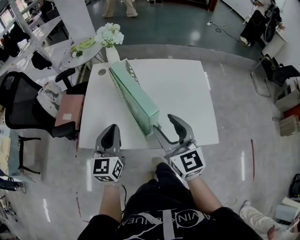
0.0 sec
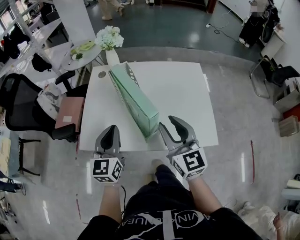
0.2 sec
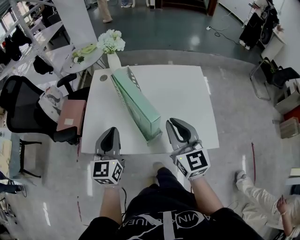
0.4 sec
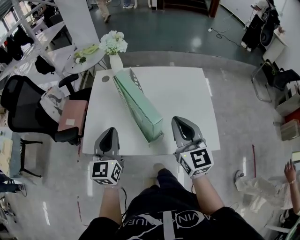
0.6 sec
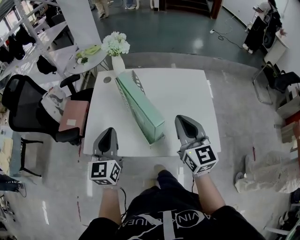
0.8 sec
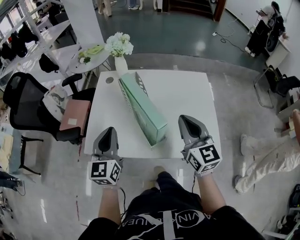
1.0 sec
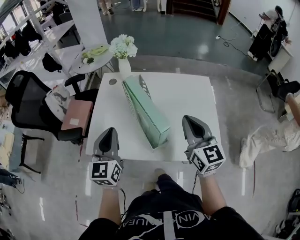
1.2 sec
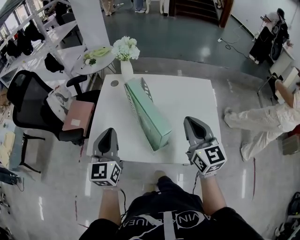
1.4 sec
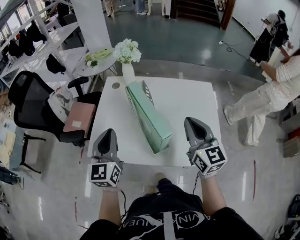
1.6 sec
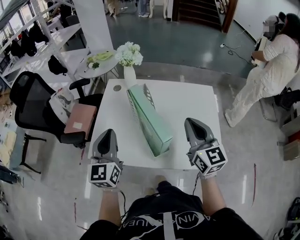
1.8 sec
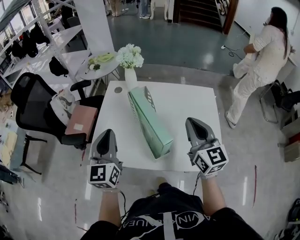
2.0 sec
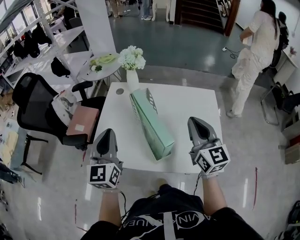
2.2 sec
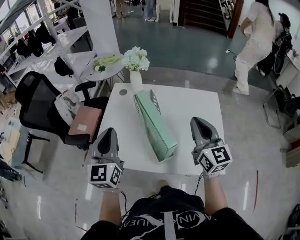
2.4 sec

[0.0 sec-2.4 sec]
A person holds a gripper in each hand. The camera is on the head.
0.0 sec to 1.2 sec: The left gripper ends up about 5 cm from where it was, while the right gripper travels to the right and forward by approximately 10 cm, and closes up.
1.2 sec to 2.4 sec: The left gripper shifts approximately 5 cm upward. The right gripper changes place by some 5 cm.

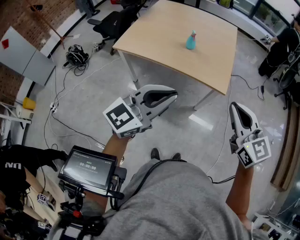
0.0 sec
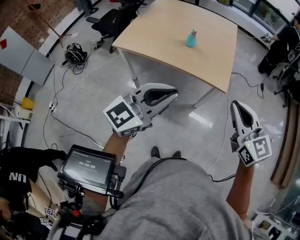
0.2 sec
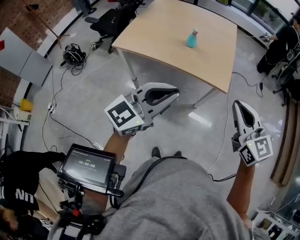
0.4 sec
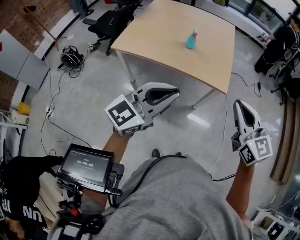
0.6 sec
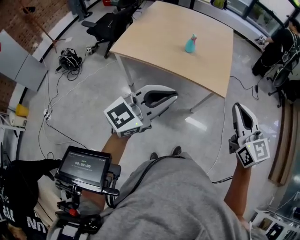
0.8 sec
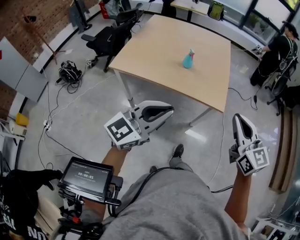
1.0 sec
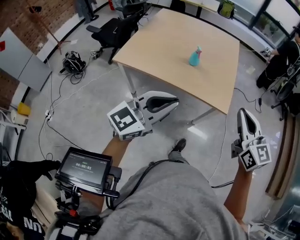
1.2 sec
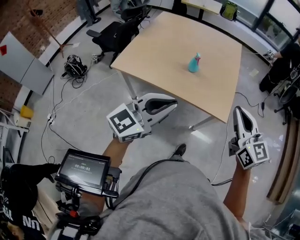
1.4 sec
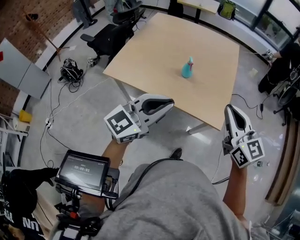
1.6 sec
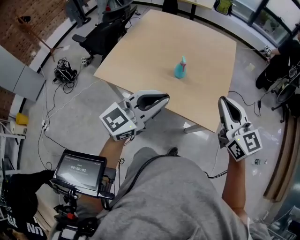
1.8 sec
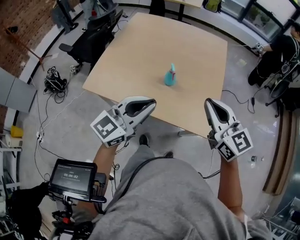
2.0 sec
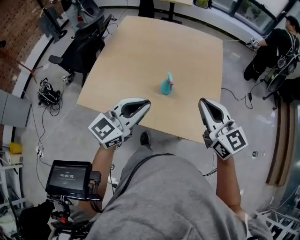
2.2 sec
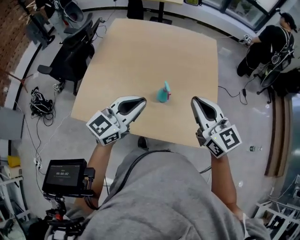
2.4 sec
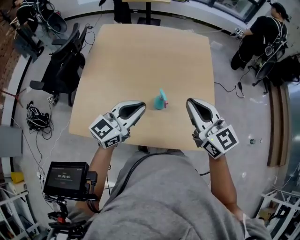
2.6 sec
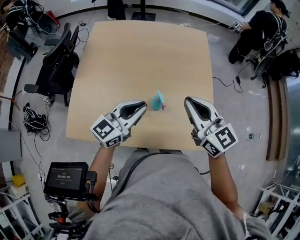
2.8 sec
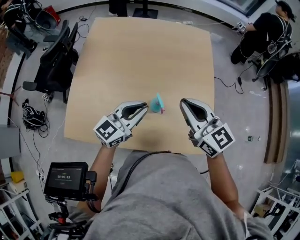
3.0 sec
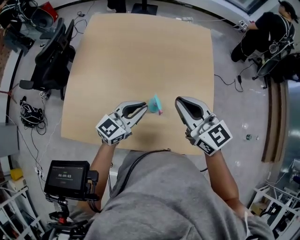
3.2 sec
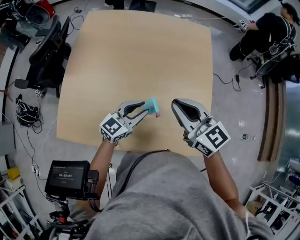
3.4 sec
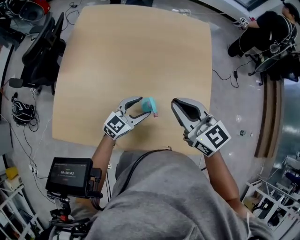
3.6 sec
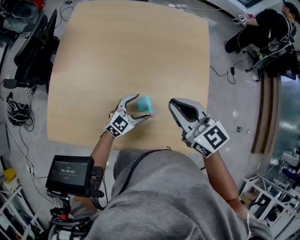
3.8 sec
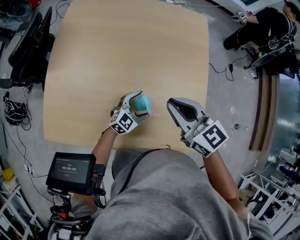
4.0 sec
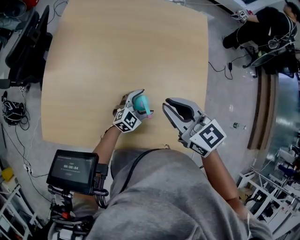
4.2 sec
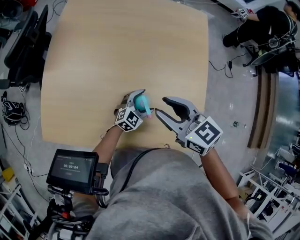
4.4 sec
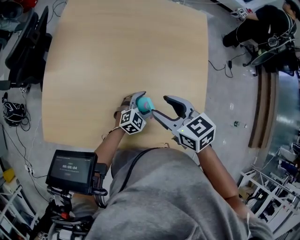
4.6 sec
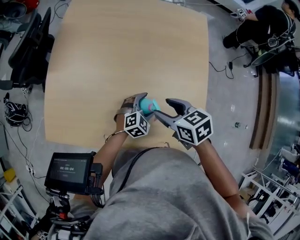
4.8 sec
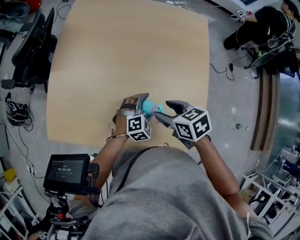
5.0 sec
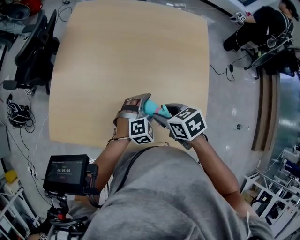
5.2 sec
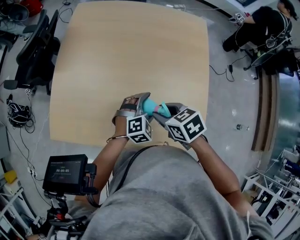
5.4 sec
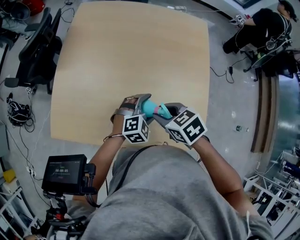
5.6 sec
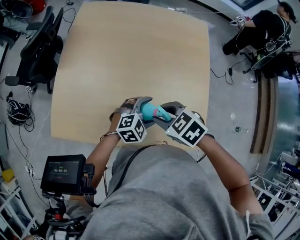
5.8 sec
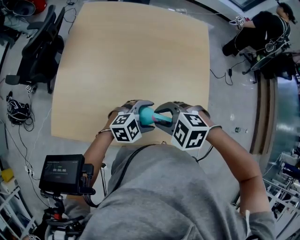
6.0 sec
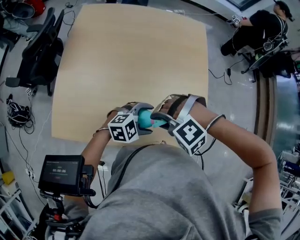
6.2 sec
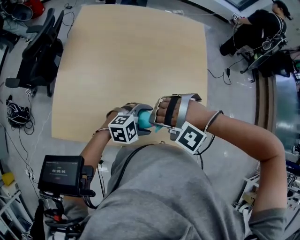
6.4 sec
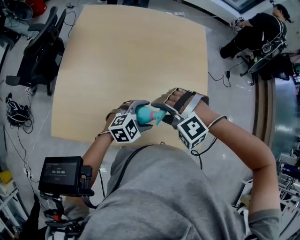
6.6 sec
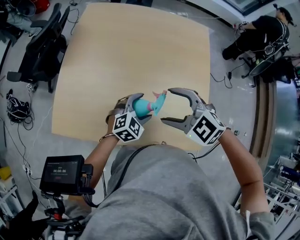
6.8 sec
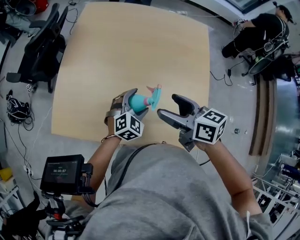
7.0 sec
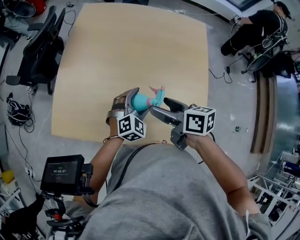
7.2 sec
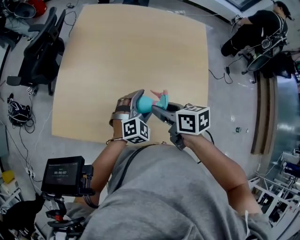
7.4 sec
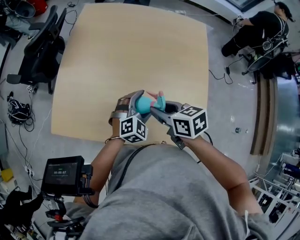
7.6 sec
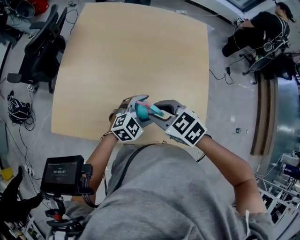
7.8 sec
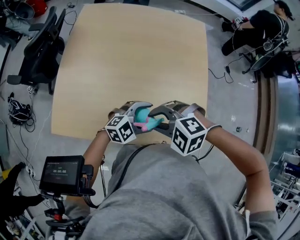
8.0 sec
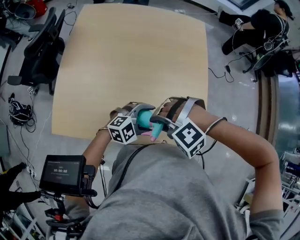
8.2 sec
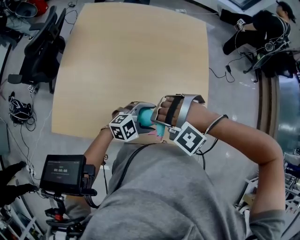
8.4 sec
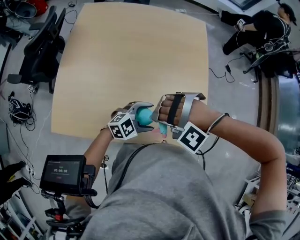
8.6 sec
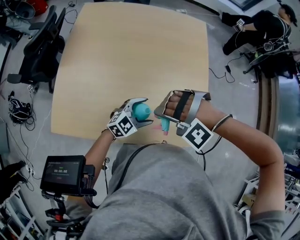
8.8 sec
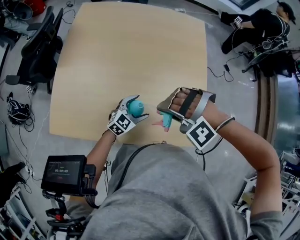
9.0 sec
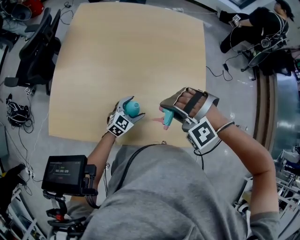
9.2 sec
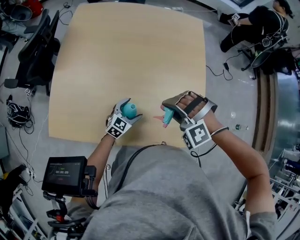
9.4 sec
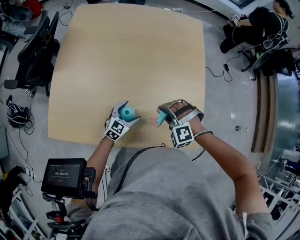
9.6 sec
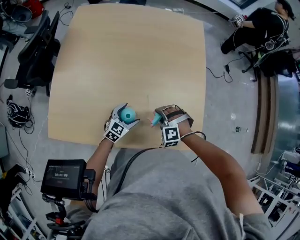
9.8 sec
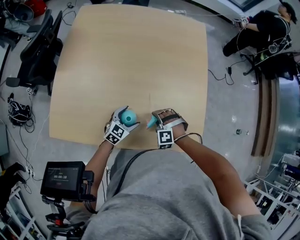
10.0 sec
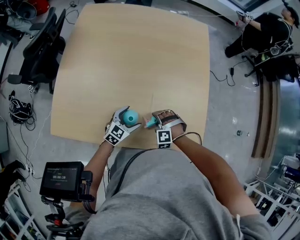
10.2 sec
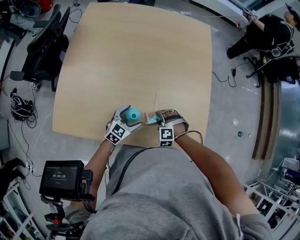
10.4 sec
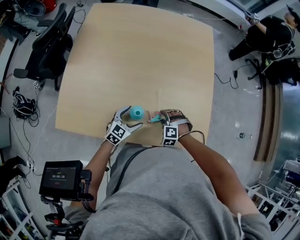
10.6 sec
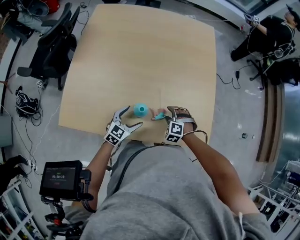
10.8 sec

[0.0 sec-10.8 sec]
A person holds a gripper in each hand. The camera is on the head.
0.0 sec to 1.6 sec: The grippers both shift forward by approximately 25 cm.
1.6 sec to 3.0 sec: The two grippers go about 35 cm forward.
3.0 sec to 4.6 sec: The left gripper heads downward and to the right, covering roughly 30 cm, tips its fingers downward by approximately 30 degrees, and opens its fingers, while the right gripper heads downward and forward, covering some 15 cm, swivels about 30 degrees, and opens.
4.6 sec to 6.2 sec: The right gripper shifts by roughly 15 cm, and rotates around the line of its fingers by approximately 90 degrees, counterclockwise from behind. Meanwhile the left gripper heads upward, covering approximately 15 cm, and turns by about 30 degrees.
6.2 sec to 7.8 sec: The left gripper turns by some 20 degrees. Meanwhile the right gripper rotates around the line of its fingers by about 70 degrees, clockwise from behind, and opens and closes again.
7.8 sec to 9.2 sec: The left gripper is displaced downward by approximately 10 cm; the right gripper moves about 5 cm, and rolls counterclockwise, seen from behind, by approximately 80 degrees.
9.2 sec to 10.8 sec: The left gripper shifts roughly 10 cm backward; the right gripper moves downward, about 25 cm, and rolls clockwise, seen from behind, by about 40 degrees.

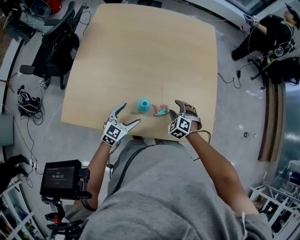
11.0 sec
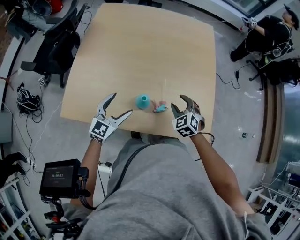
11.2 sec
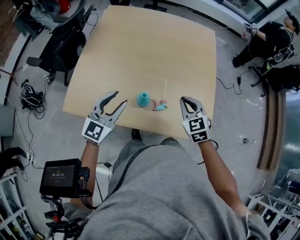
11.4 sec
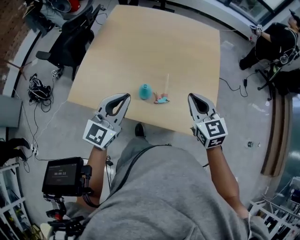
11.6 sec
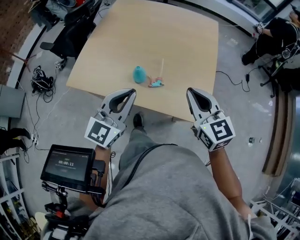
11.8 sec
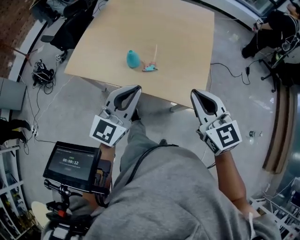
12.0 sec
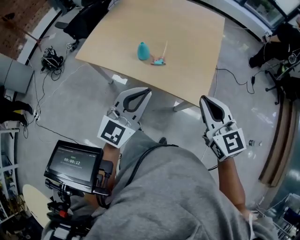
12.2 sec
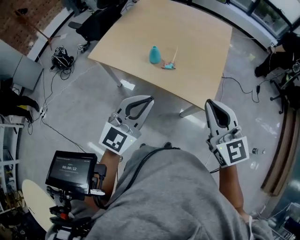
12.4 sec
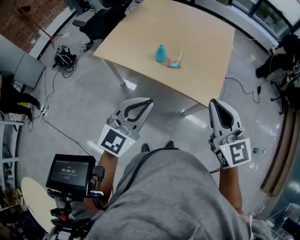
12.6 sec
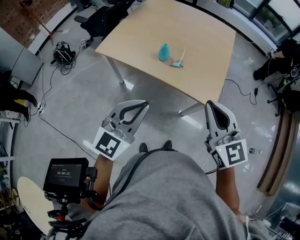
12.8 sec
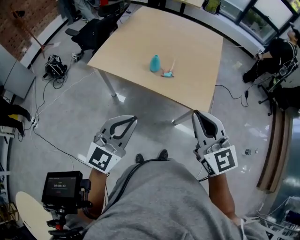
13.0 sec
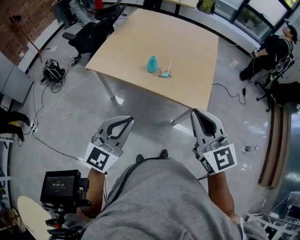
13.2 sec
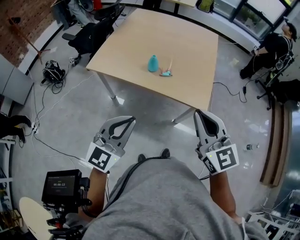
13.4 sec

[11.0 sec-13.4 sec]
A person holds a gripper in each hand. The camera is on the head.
11.0 sec to 12.2 sec: The left gripper shifts by approximately 40 cm, swivels about 30 degrees, and closes its fingers, while the right gripper shifts approximately 30 cm upward, tilts its fingers roughly 40 degrees upward, and closes.
12.2 sec to 13.4 sec: The left gripper goes about 20 cm backward and to the left; the right gripper travels backward, to the left and upward by some 20 cm.

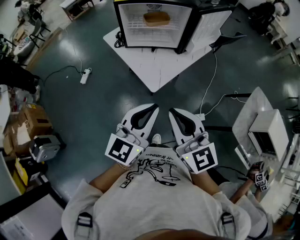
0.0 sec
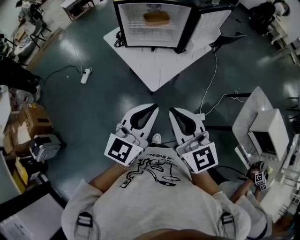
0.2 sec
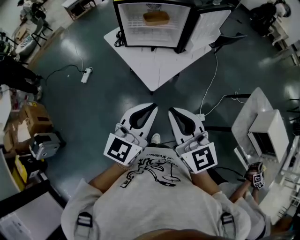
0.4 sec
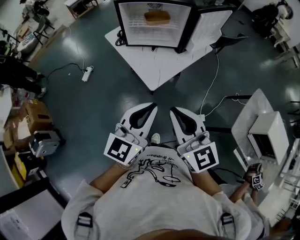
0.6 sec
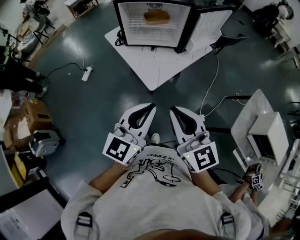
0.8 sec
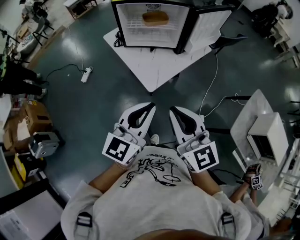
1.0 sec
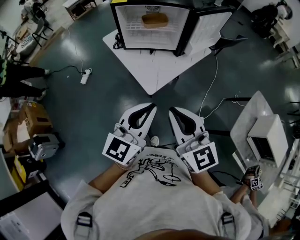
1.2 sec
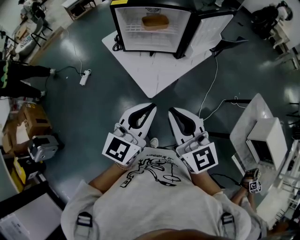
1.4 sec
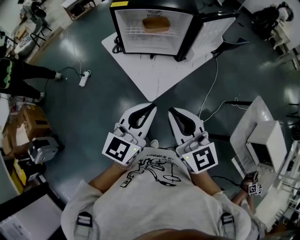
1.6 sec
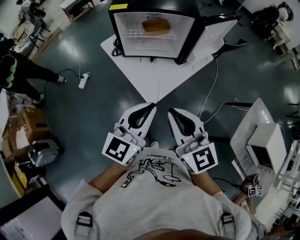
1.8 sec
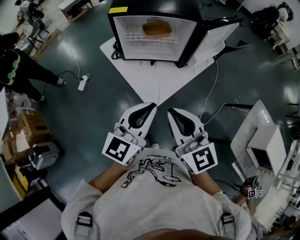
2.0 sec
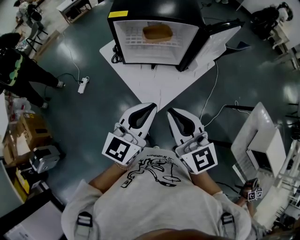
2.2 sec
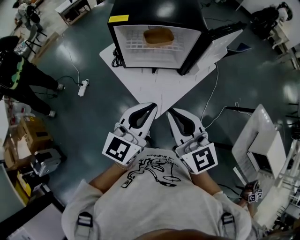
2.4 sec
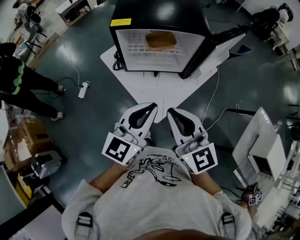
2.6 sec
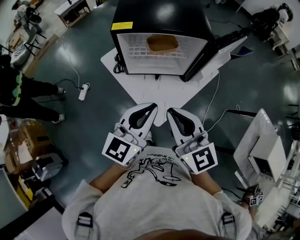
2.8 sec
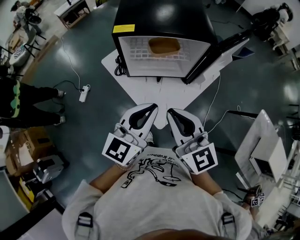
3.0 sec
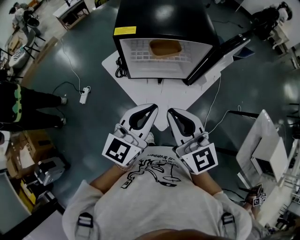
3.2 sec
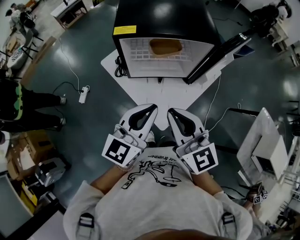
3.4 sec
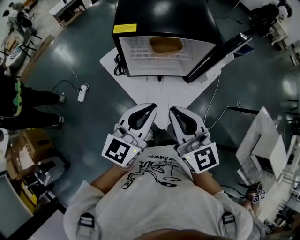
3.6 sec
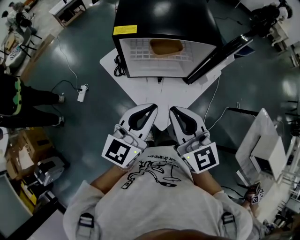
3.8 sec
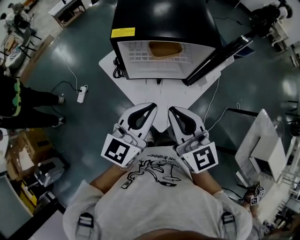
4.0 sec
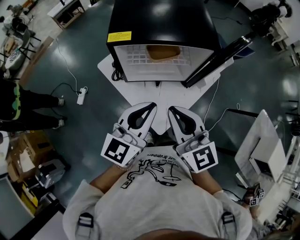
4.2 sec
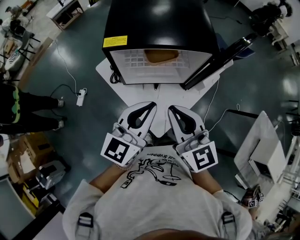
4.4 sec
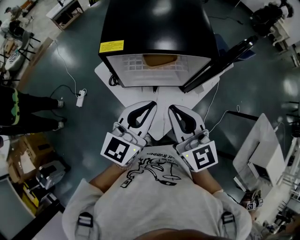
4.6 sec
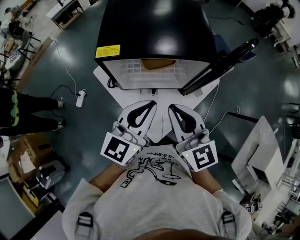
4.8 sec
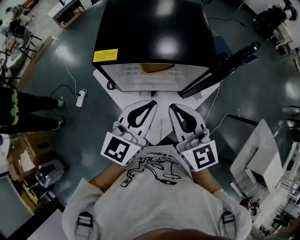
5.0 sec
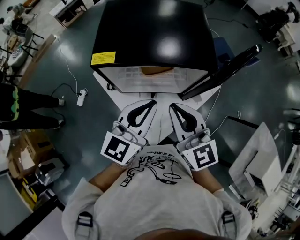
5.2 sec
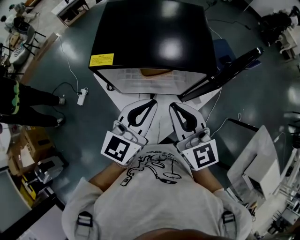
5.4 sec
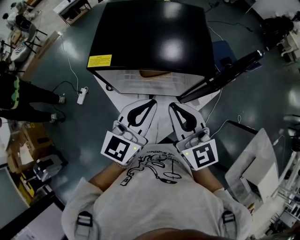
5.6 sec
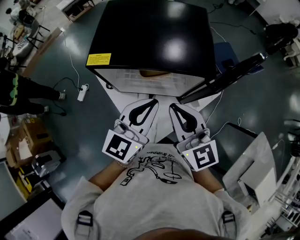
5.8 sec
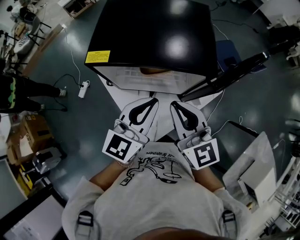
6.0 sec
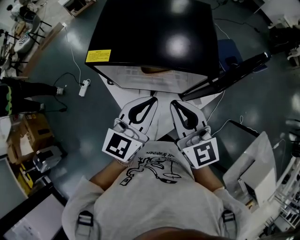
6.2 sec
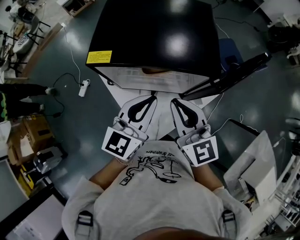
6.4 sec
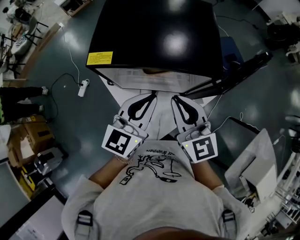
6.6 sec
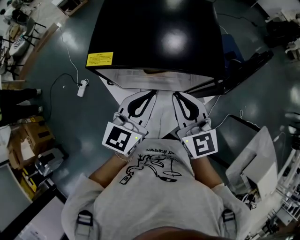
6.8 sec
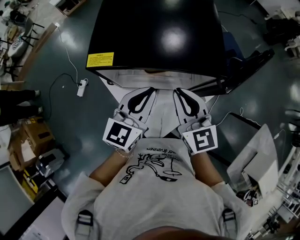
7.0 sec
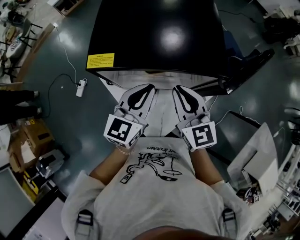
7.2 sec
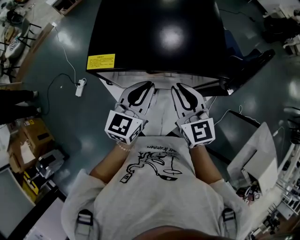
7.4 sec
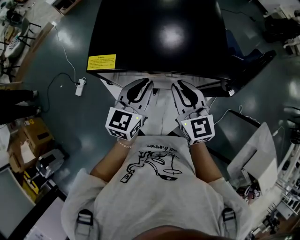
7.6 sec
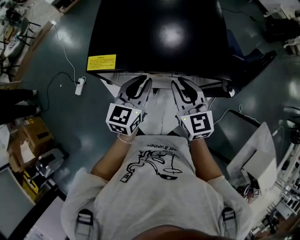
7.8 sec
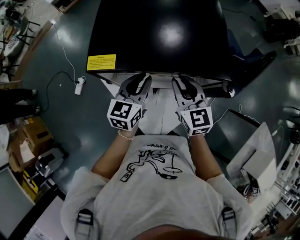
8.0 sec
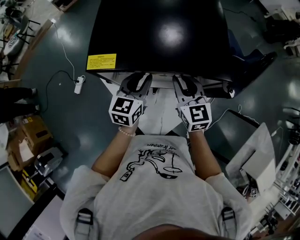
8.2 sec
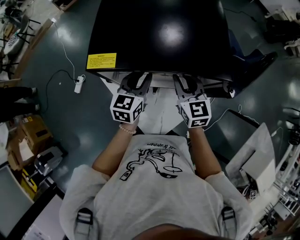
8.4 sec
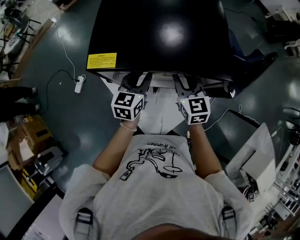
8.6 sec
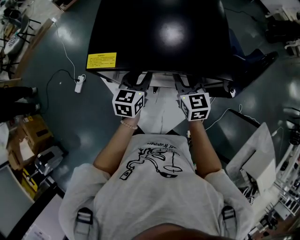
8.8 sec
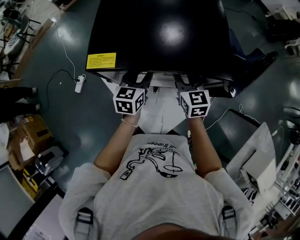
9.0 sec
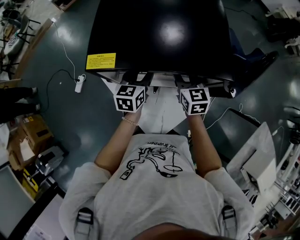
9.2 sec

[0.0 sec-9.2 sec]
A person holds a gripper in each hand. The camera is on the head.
0.0 sec to 1.6 sec: Both grippers move forward, approximately 5 cm.
1.6 sec to 3.0 sec: The right gripper travels forward and to the left by some 20 cm. Meanwhile the left gripper travels forward by about 20 cm.
3.0 sec to 4.6 sec: The two grippers go approximately 10 cm forward.
4.6 sec to 6.2 sec: Both grippers move forward and to the right, about 10 cm.
6.2 sec to 7.6 sec: The left gripper goes approximately 15 cm forward, downward and to the left. Meanwhile the right gripper heads downward and forward, covering roughly 10 cm.
7.6 sec to 9.2 sec: Both grippers move downward and forward, some 10 cm. The left gripper opens its fingers, while the right gripper opens up.
